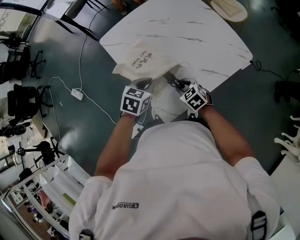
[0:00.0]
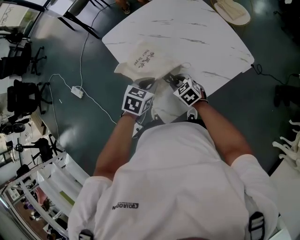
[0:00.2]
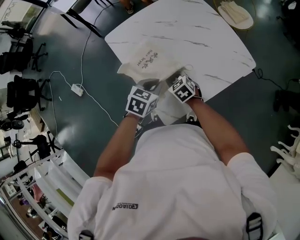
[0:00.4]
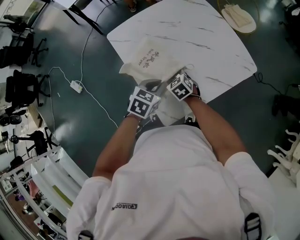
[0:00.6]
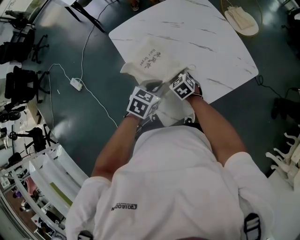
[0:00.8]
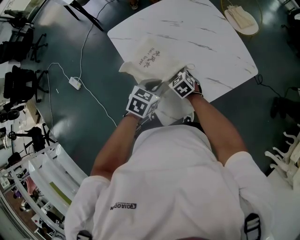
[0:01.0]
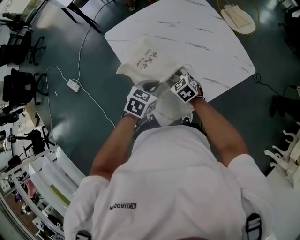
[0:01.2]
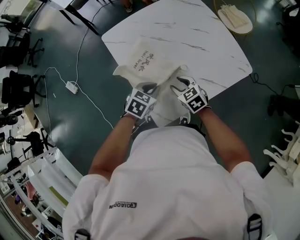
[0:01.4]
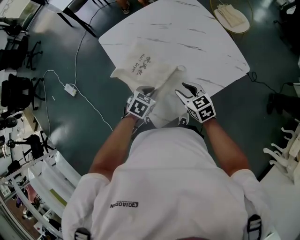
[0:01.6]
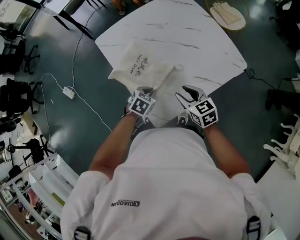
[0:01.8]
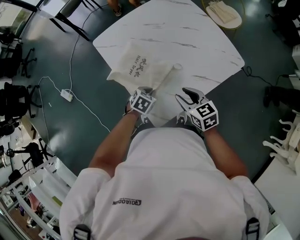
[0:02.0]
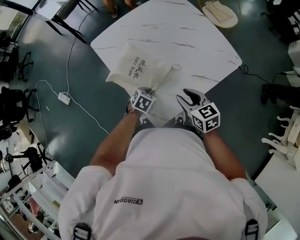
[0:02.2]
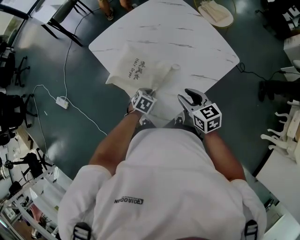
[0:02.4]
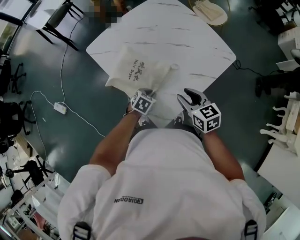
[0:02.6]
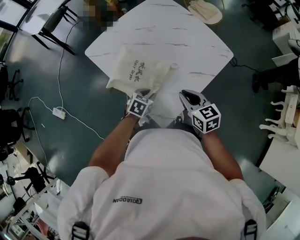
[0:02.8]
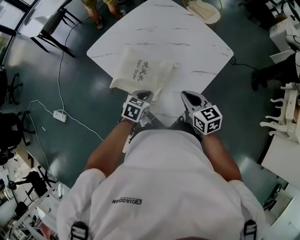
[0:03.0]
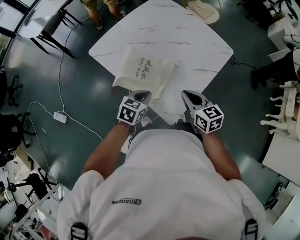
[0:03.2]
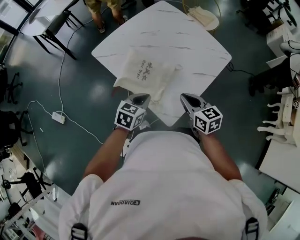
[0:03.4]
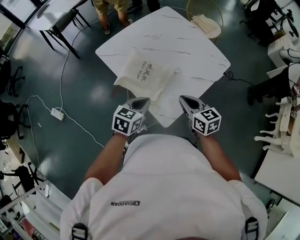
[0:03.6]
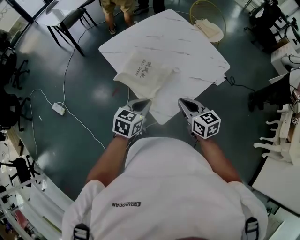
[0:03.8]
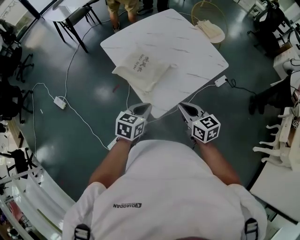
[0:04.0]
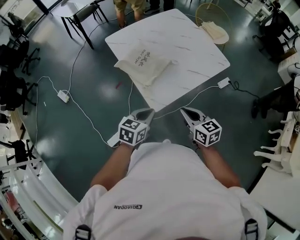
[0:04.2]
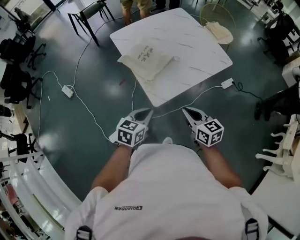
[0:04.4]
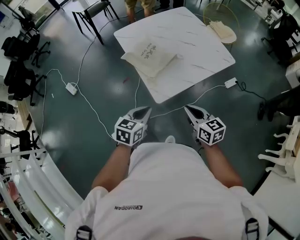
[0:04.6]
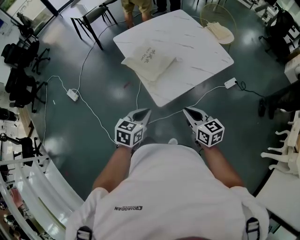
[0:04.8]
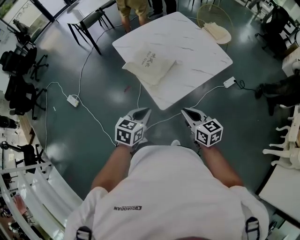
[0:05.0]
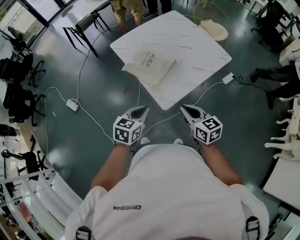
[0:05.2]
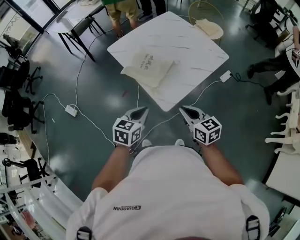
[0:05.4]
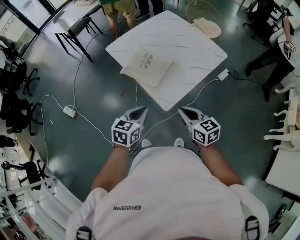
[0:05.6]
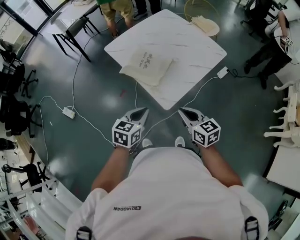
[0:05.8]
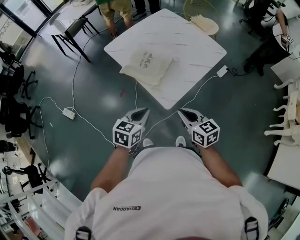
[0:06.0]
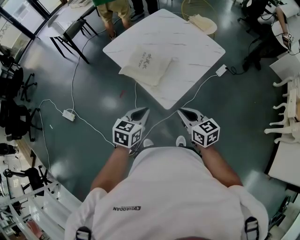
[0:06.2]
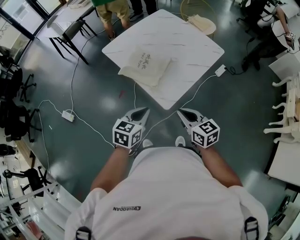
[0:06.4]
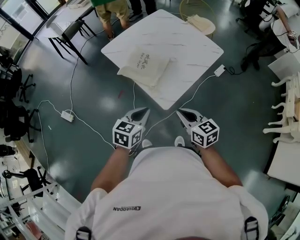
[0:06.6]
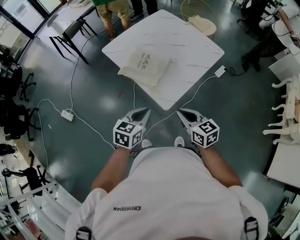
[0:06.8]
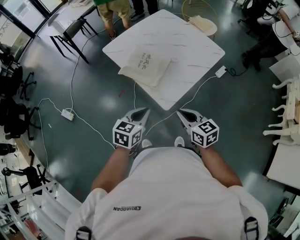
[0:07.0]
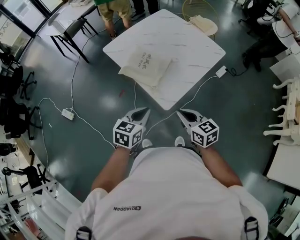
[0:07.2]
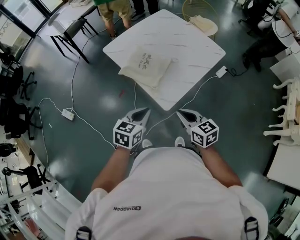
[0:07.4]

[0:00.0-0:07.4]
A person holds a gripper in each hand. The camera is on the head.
1.4 to 3.0 s: The right gripper is displaced upward and backward by roughly 15 cm, swivels some 40 degrees, and closes. The left gripper goes downward and returns, approximately 10 cm each way.
3.0 to 4.4 s: The left gripper heads backward and upward, covering approximately 25 cm, and turns by approximately 30 degrees; the right gripper travels backward and to the right by roughly 20 cm.
4.4 to 6.0 s: Both grippers travel together to the left, roughly 10 cm.
6.0 to 7.4 s: The two grippers keep their place.

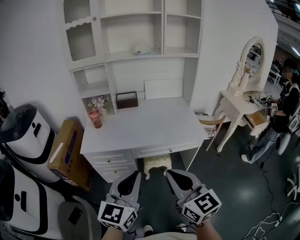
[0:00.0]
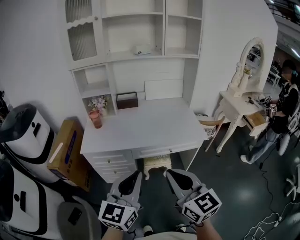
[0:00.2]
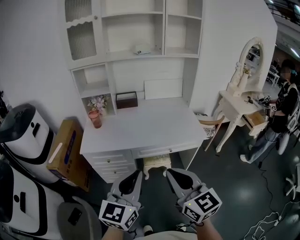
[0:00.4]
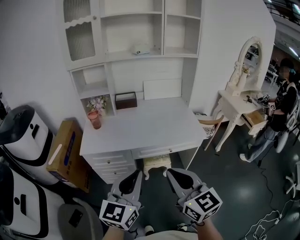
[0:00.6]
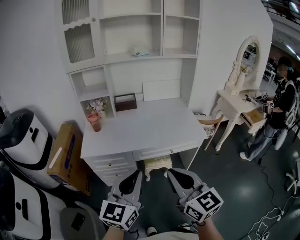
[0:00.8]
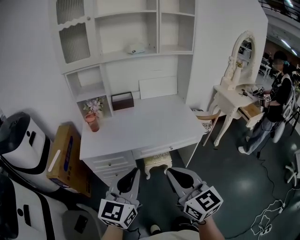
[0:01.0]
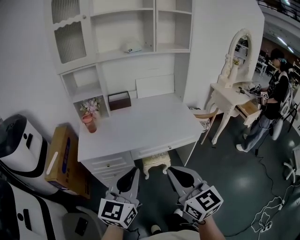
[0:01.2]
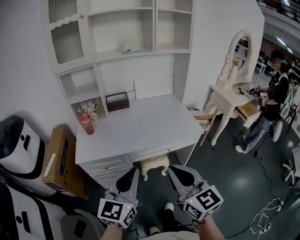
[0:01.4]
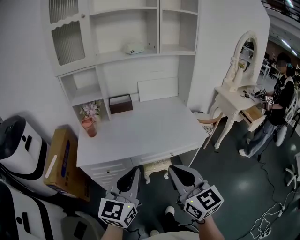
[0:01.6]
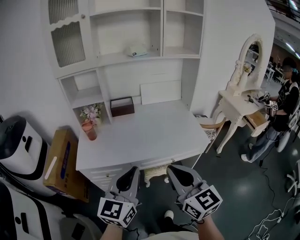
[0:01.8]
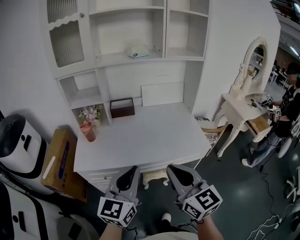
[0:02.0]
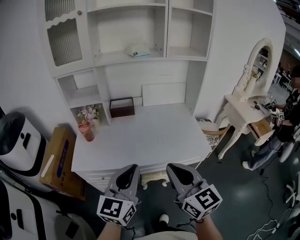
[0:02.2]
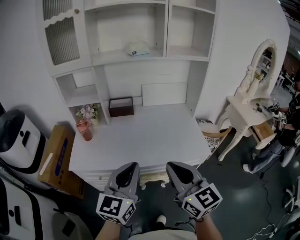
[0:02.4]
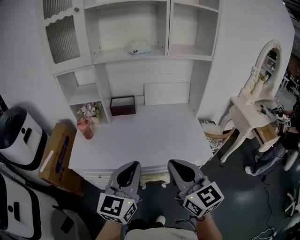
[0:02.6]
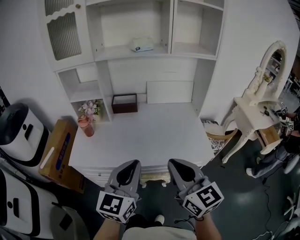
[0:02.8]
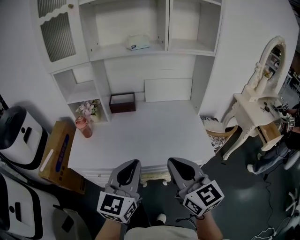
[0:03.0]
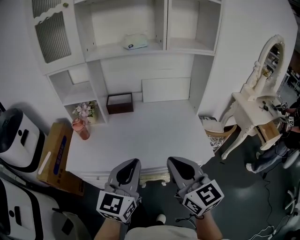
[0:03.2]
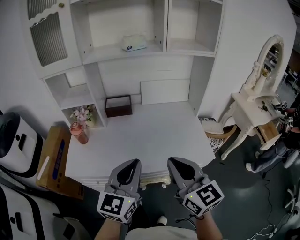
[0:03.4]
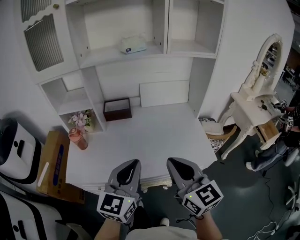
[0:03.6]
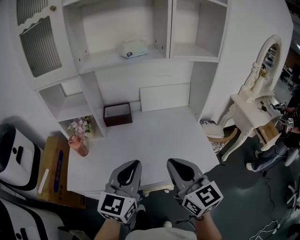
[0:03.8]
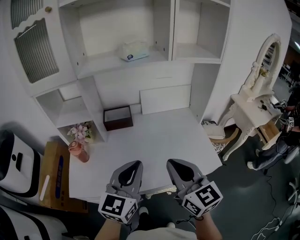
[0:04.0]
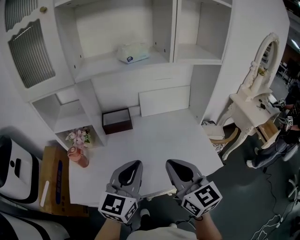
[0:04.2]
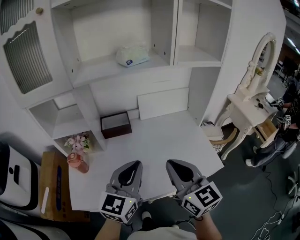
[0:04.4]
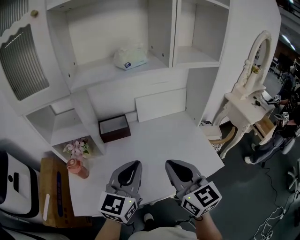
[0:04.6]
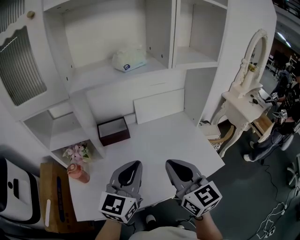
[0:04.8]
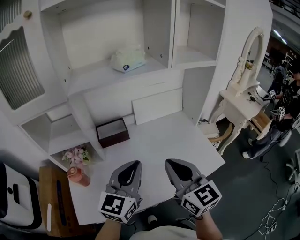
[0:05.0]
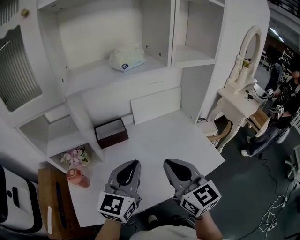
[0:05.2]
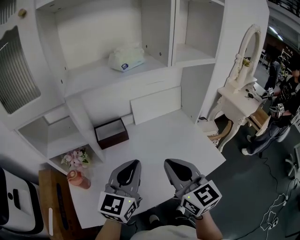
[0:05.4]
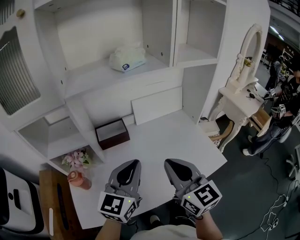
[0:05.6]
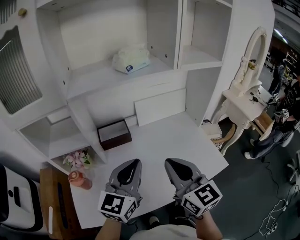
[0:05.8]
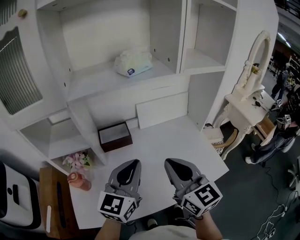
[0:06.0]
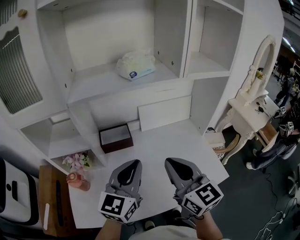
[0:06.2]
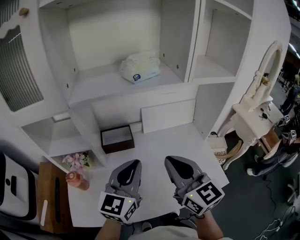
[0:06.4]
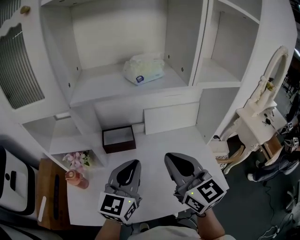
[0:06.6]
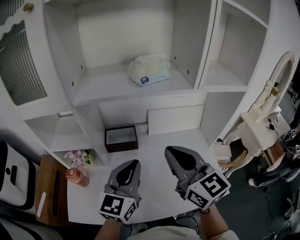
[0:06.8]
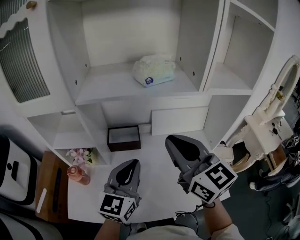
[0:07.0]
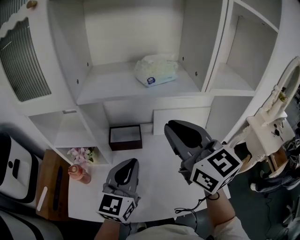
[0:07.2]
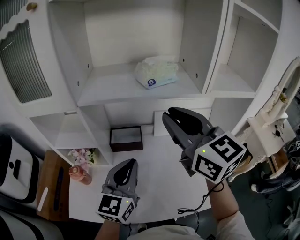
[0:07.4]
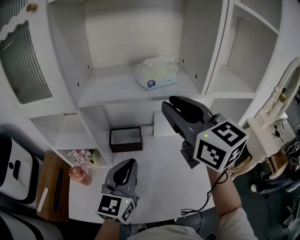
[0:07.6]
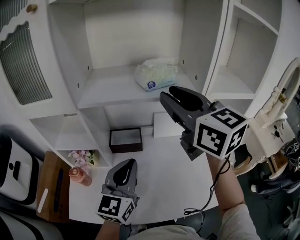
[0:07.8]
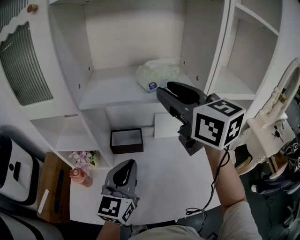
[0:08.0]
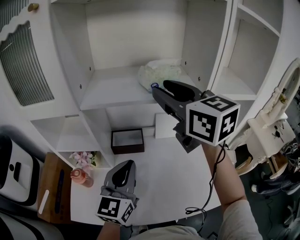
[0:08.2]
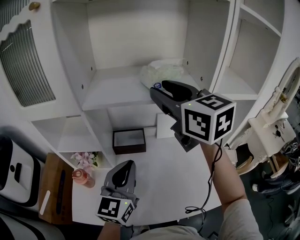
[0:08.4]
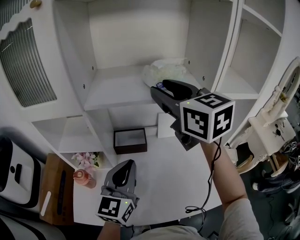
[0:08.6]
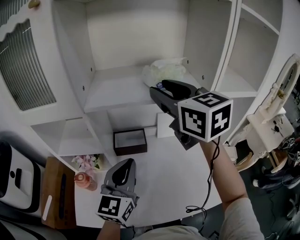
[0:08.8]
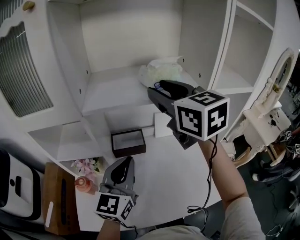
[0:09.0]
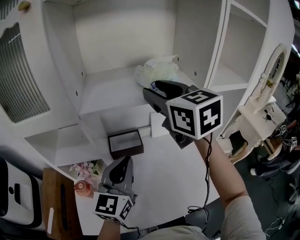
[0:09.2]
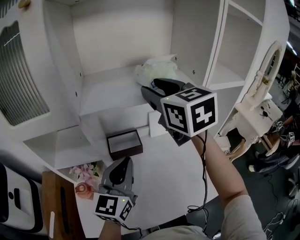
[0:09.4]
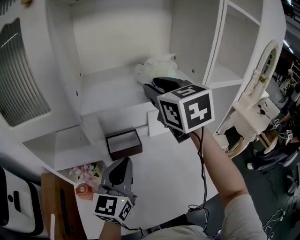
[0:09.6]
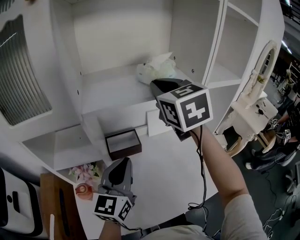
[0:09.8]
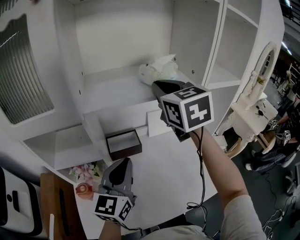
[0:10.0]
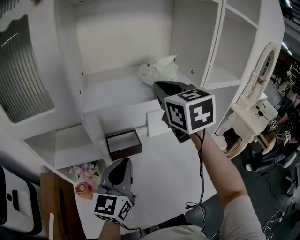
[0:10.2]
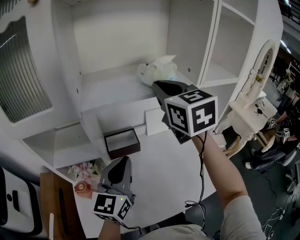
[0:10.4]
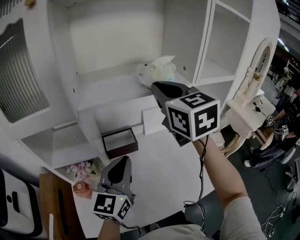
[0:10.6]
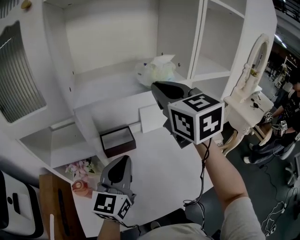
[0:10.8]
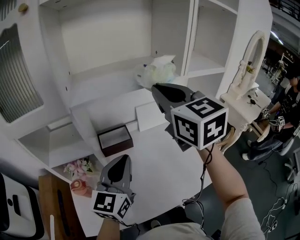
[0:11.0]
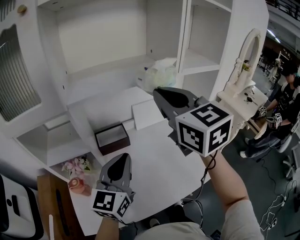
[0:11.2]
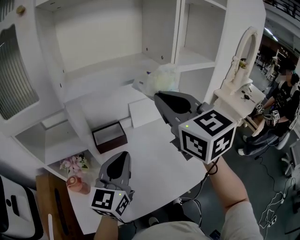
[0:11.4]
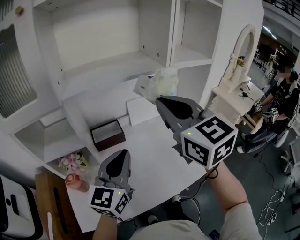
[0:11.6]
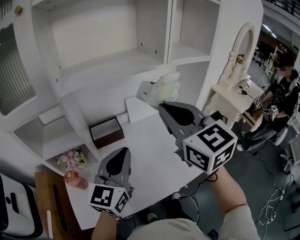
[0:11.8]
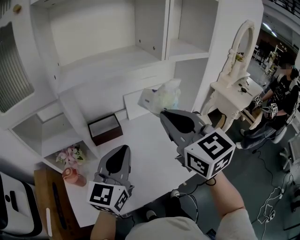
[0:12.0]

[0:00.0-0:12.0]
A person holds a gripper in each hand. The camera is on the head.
0.0 to 1.6 s: Both grippers move forward, about 10 cm.
1.6 to 3.0 s: Both grippers move forward and to the right, some 20 cm.
3.0 to 4.4 s: Both grippers move forward, some 20 cm.
4.4 to 6.0 s: The grippers both shift forward by approximately 10 cm.
6.0 to 7.6 s: The left gripper goes roughly 5 cm forward. Meanwhile the right gripper travels upward and forward by some 25 cm, and opens.
7.6 to 9.0 s: The left gripper ends up some 5 cm from where it was, while the right gripper is displaced forward by roughly 5 cm.
9.0 to 10.4 s: The right gripper closes up.
10.4 to 12.0 s: The left gripper heads to the right and backward, covering about 10 cm. The right gripper travels backward and to the right by roughly 20 cm.

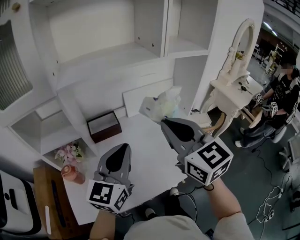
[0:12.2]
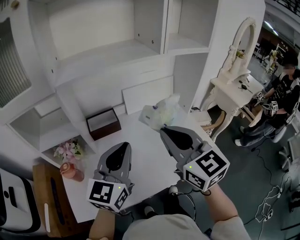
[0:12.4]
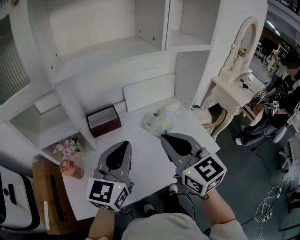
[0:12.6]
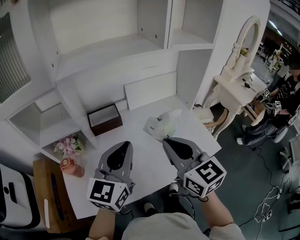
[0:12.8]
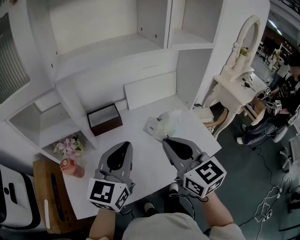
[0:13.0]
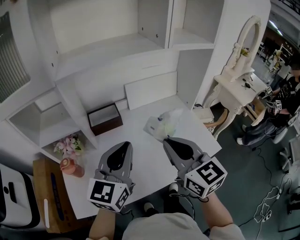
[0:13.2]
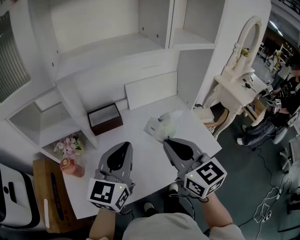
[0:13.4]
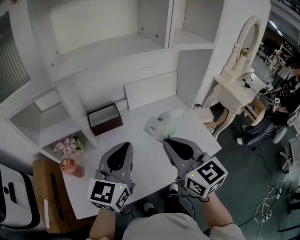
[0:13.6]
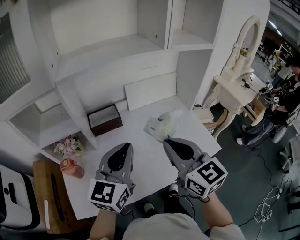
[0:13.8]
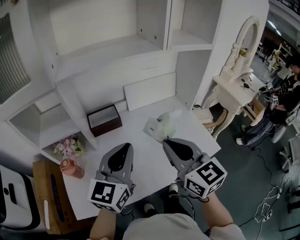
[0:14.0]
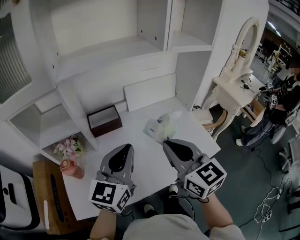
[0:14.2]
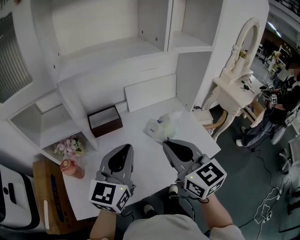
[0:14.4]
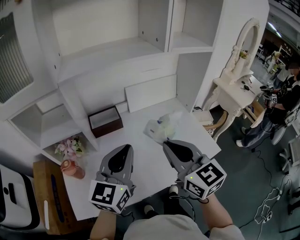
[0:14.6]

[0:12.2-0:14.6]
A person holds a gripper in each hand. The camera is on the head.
12.2 to 13.4 s: The right gripper moves downward, about 10 cm.
13.4 to 14.6 s: Neither gripper changes place.

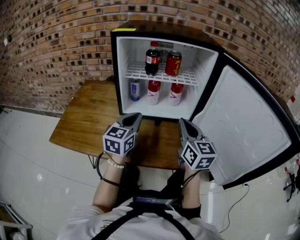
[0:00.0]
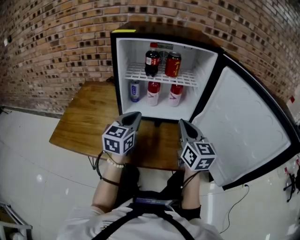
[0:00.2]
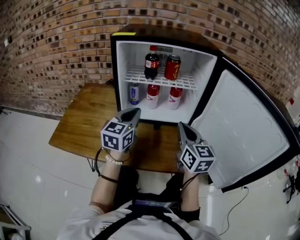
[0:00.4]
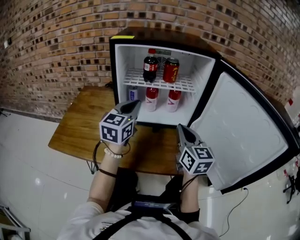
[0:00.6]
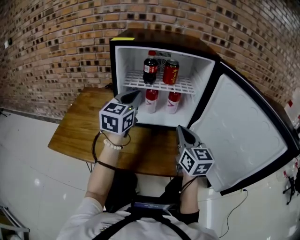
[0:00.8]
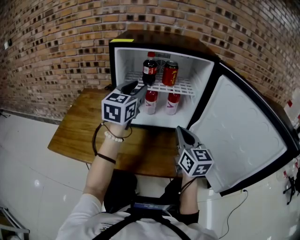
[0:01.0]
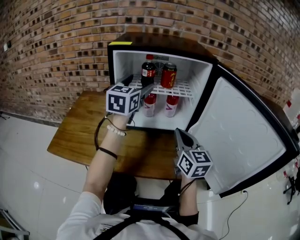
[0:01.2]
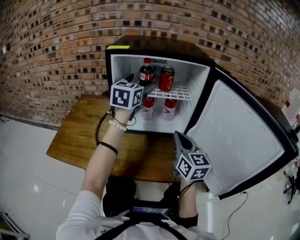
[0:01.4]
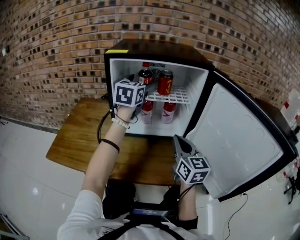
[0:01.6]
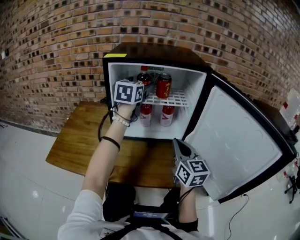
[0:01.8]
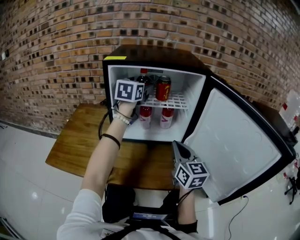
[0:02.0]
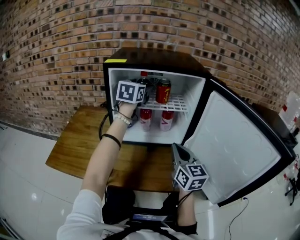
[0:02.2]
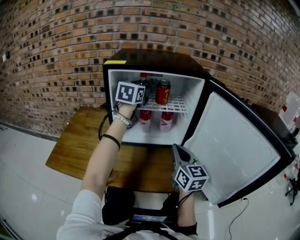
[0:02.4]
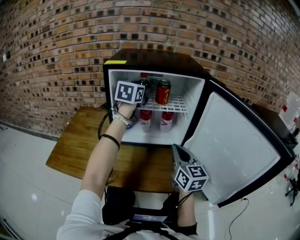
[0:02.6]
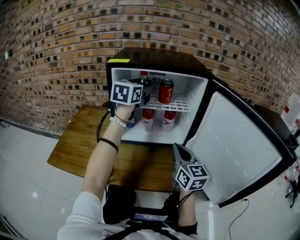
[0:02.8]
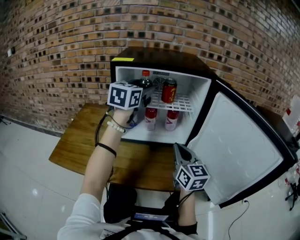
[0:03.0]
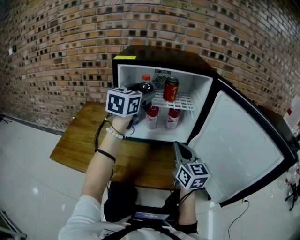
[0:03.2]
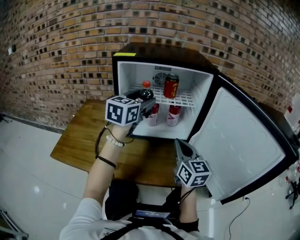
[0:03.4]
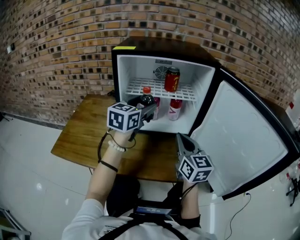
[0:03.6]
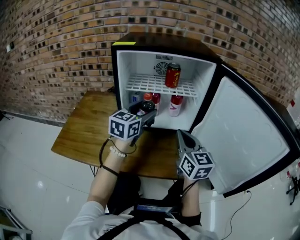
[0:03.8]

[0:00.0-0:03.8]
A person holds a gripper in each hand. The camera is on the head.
0.0 to 1.2 s: The left gripper shifts approximately 20 cm upward and forward, and opens its fingers.
1.2 to 2.6 s: The left gripper shifts some 10 cm forward.
2.6 to 3.8 s: The left gripper moves backward and downward, about 20 cm.
